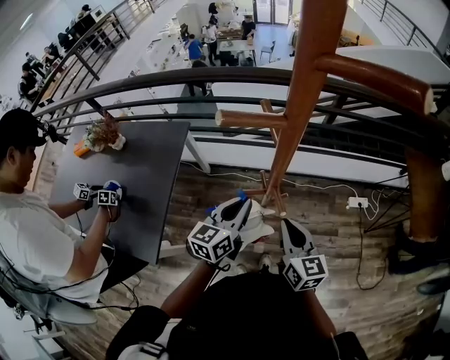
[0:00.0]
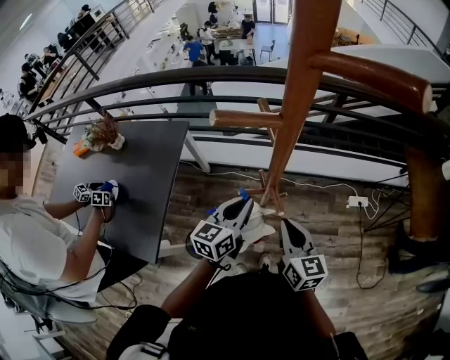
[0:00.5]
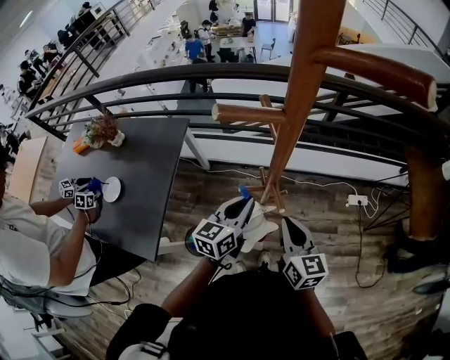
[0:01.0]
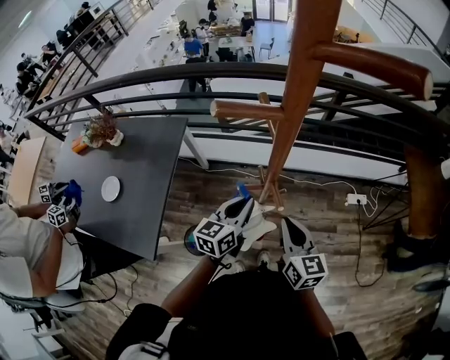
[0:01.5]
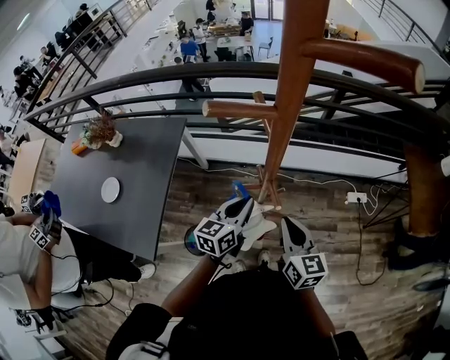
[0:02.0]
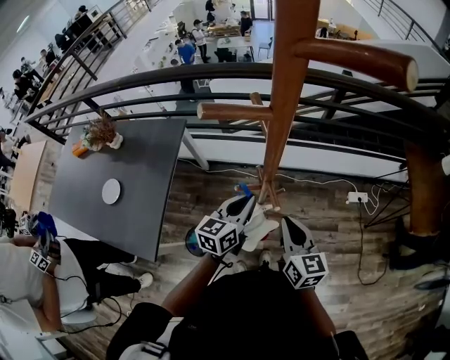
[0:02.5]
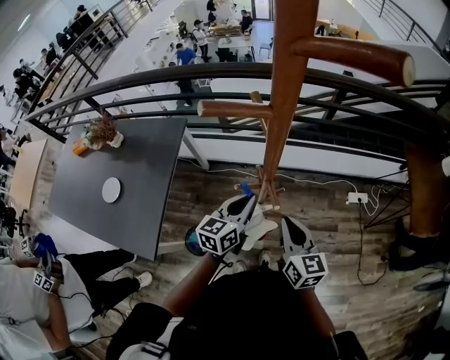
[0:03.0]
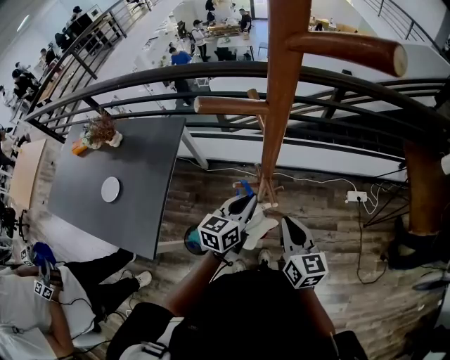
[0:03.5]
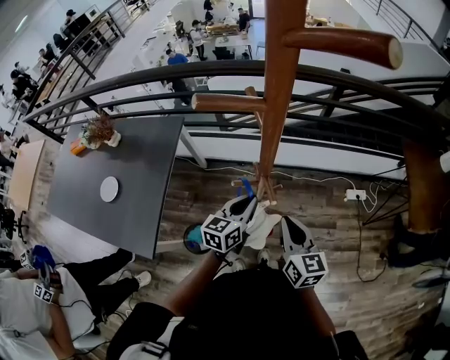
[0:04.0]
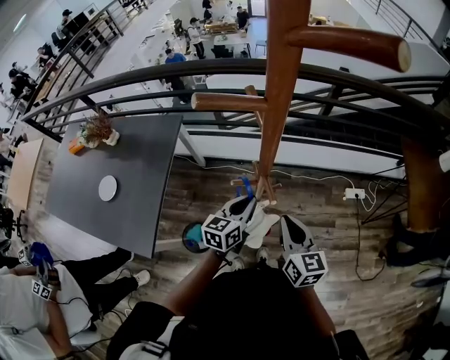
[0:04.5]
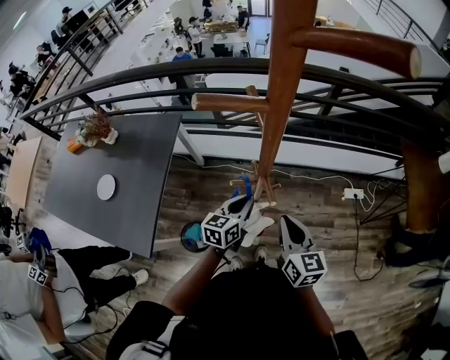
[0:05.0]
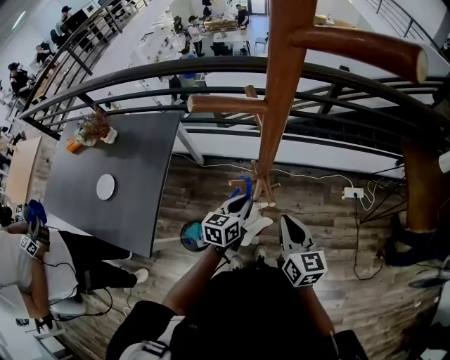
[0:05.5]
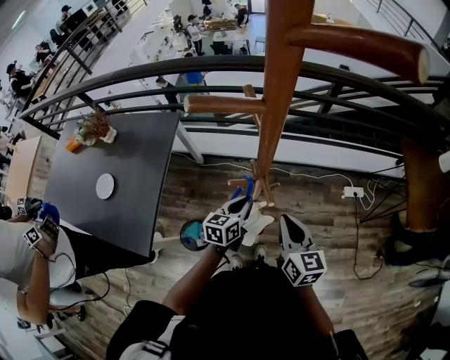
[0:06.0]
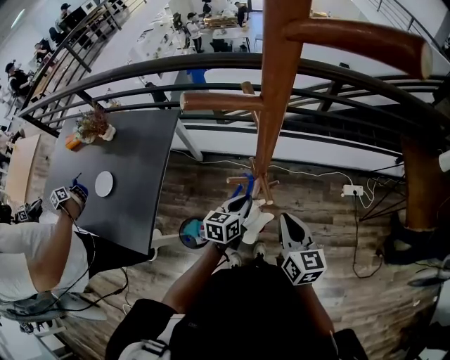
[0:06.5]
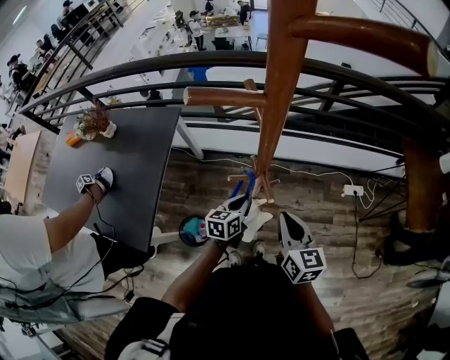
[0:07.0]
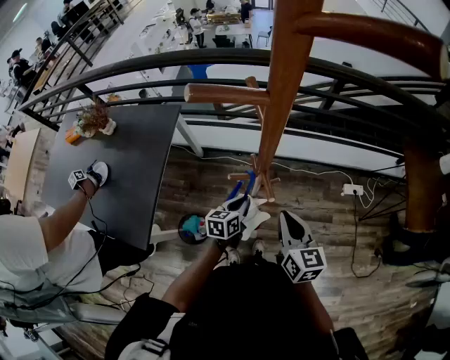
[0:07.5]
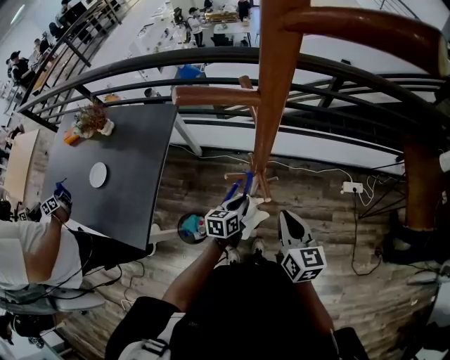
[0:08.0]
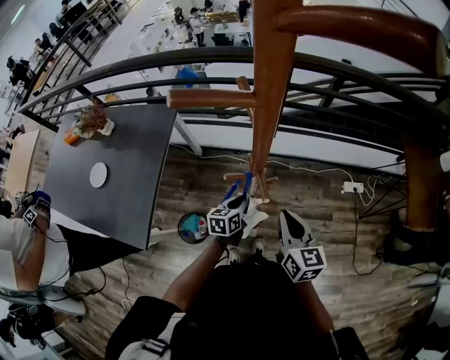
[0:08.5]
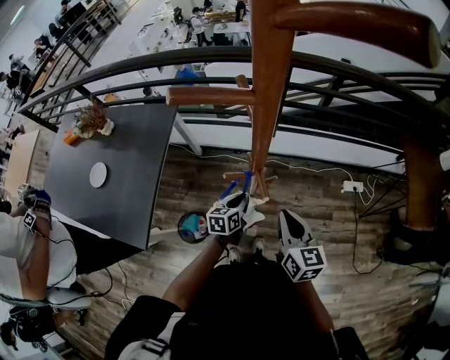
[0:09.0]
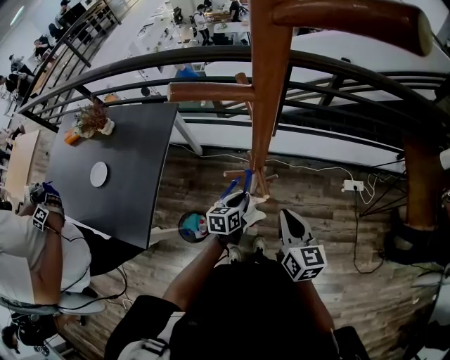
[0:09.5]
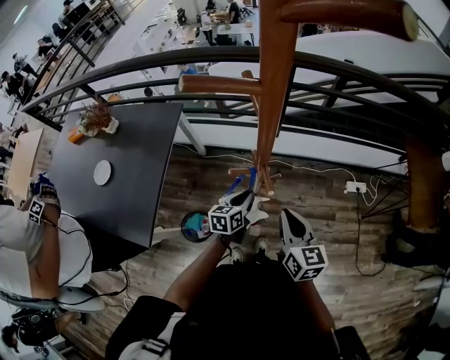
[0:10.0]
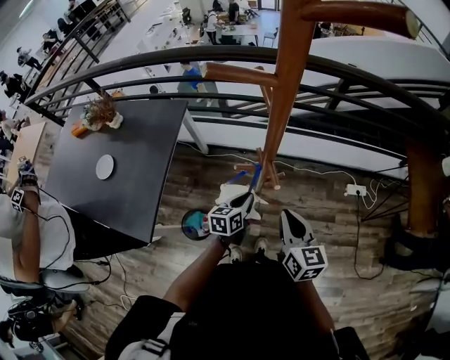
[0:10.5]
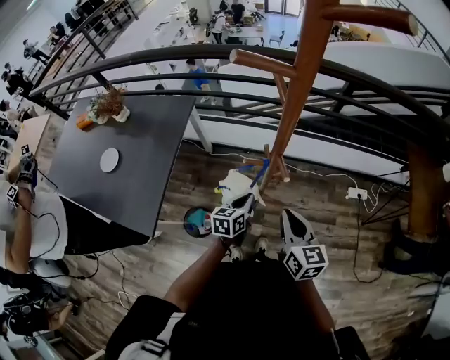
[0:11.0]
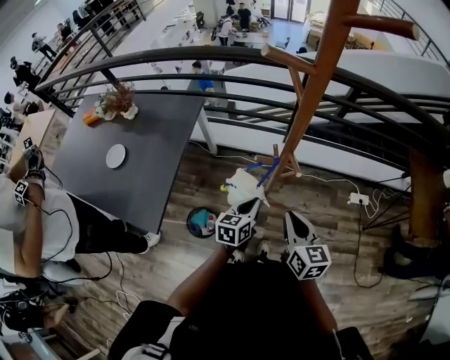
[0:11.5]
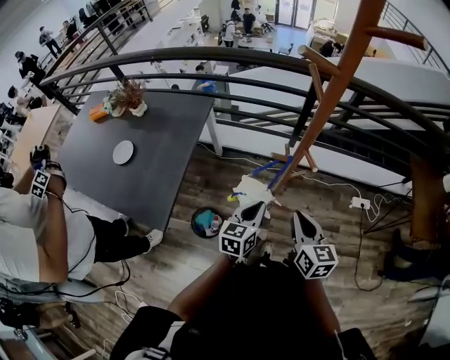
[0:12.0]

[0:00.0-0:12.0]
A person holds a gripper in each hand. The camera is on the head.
0:00.0 to 0:02.0: There are only small adjustments of the grippers.
0:02.0 to 0:04.0: The grippers stay close to where they were, moving slightly.
0:04.0 to 0:06.0: The left gripper goes approximately 5 cm downward.
0:06.0 to 0:08.0: The left gripper moves downward, some 5 cm.
0:08.0 to 0:10.0: The grippers make only small movements.
0:10.0 to 0:12.0: The left gripper is displaced backward and upward by roughly 15 cm. The right gripper heads backward, covering about 5 cm.

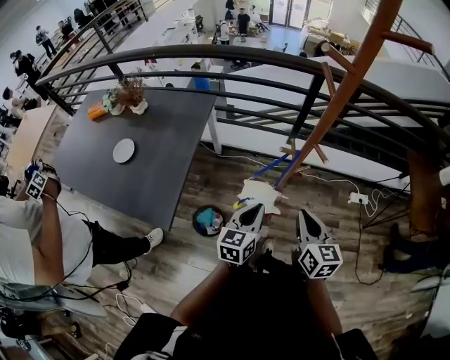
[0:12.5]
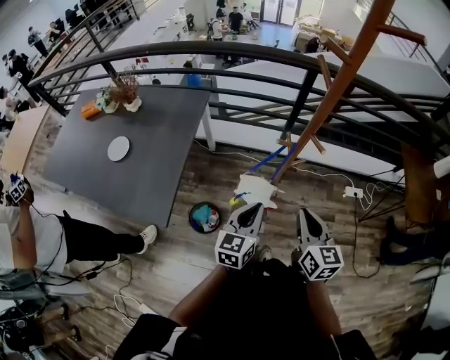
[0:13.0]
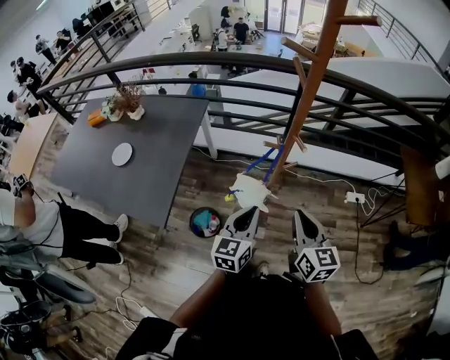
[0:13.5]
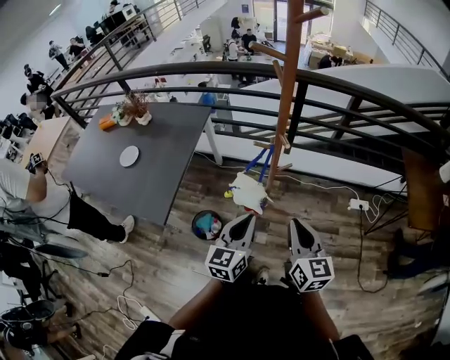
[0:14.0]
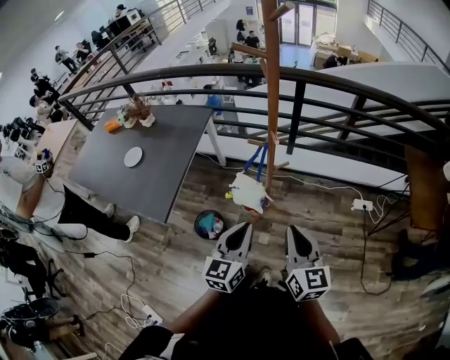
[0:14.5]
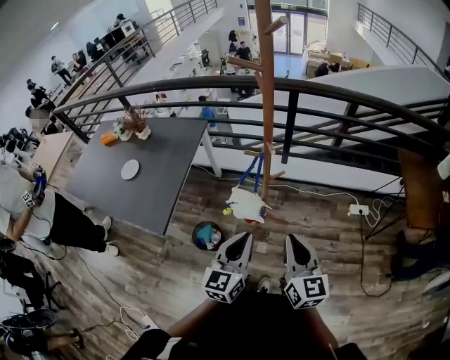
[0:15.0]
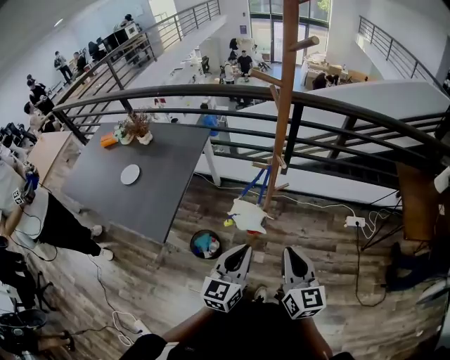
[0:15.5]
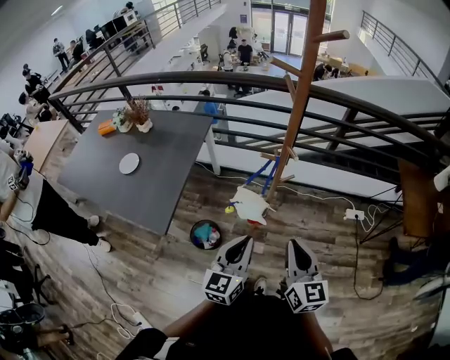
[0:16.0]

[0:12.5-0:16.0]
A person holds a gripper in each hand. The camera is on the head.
0:12.5 to 0:14.5: The left gripper moves backward, upward and to the right, roughly 15 cm, while the right gripper goes approximately 15 cm backward, to the right and upward.
0:14.5 to 0:16.0: The left gripper is displaced to the left by approximately 5 cm. Meanwhile the right gripper changes place by about 5 cm.

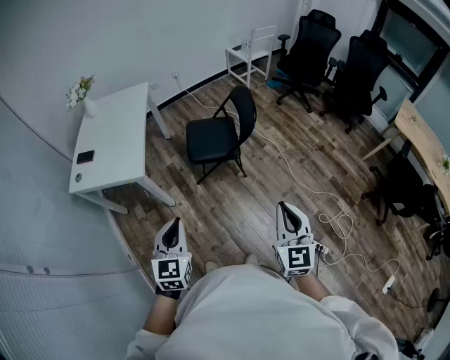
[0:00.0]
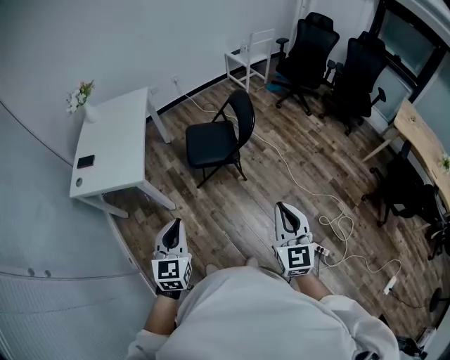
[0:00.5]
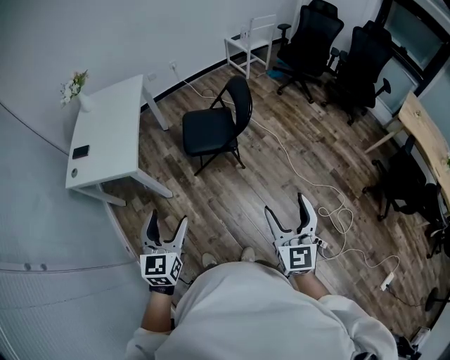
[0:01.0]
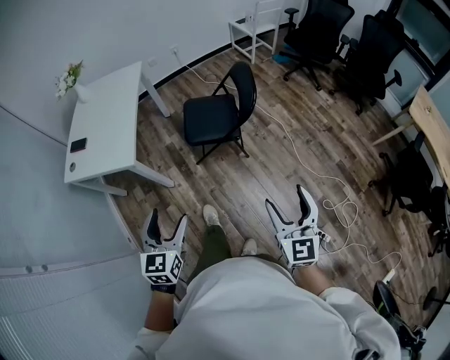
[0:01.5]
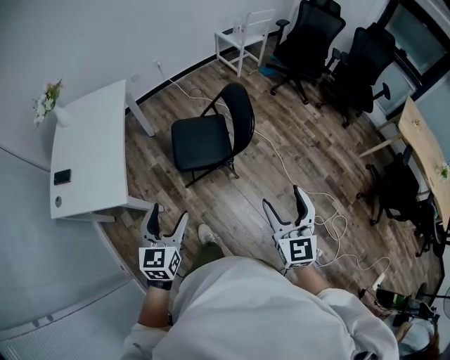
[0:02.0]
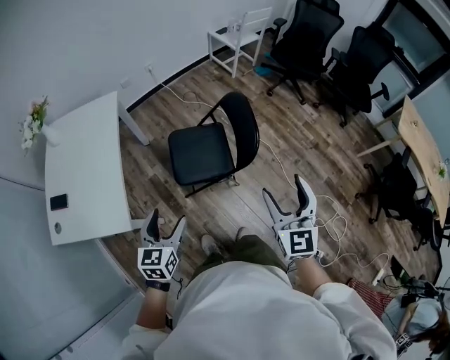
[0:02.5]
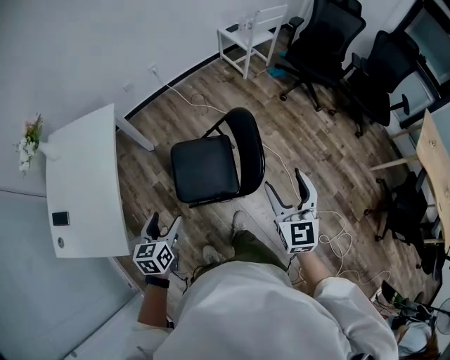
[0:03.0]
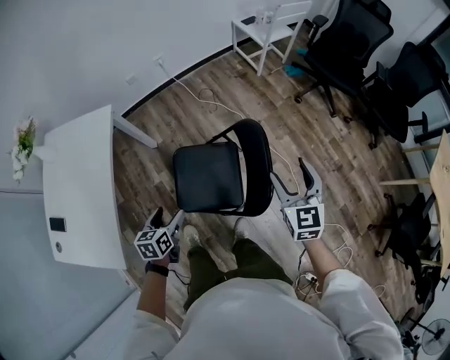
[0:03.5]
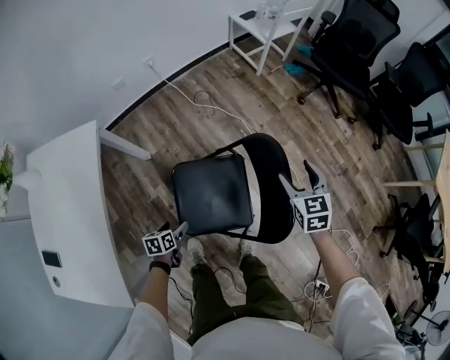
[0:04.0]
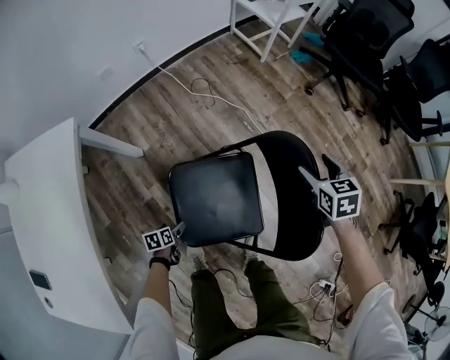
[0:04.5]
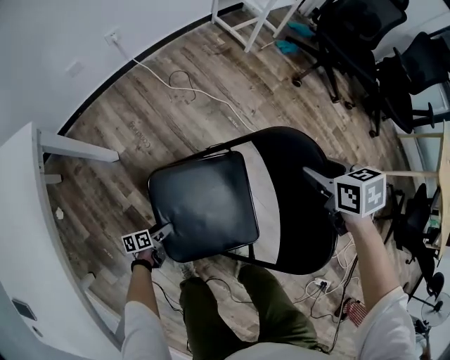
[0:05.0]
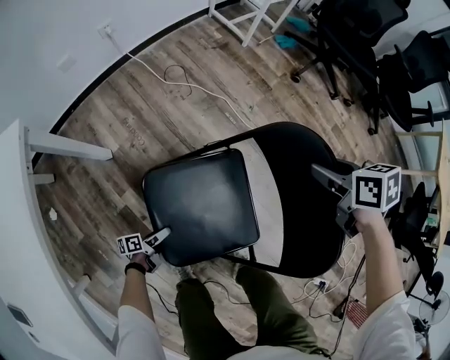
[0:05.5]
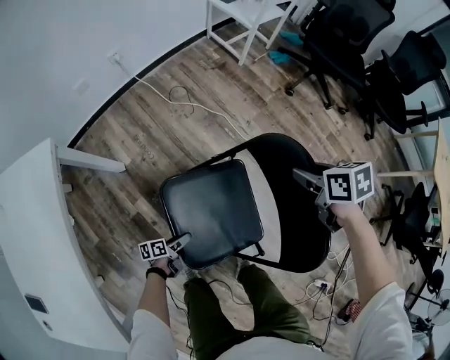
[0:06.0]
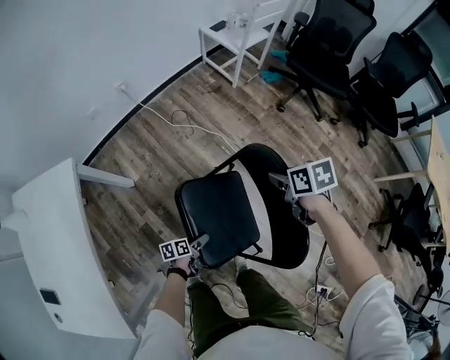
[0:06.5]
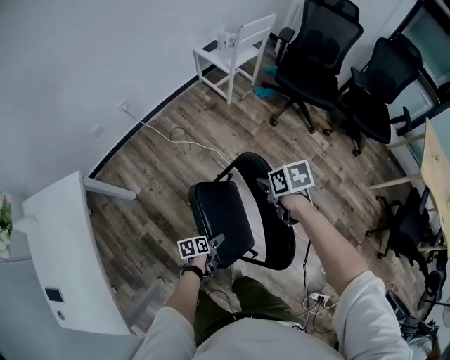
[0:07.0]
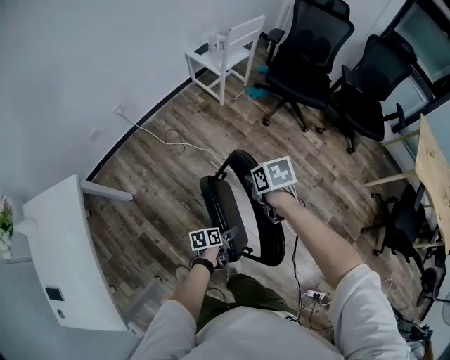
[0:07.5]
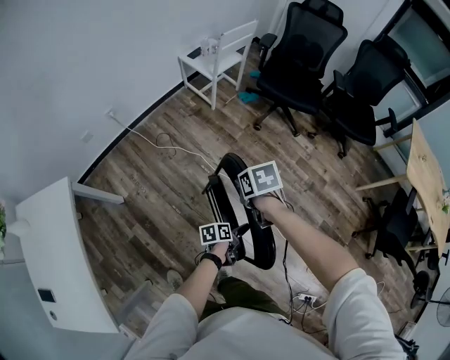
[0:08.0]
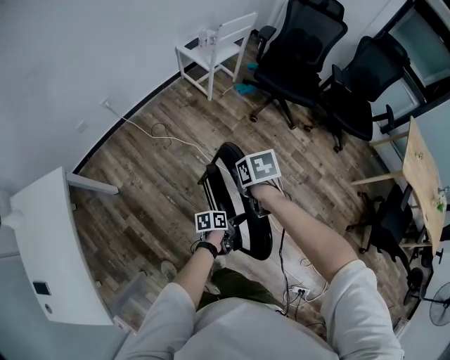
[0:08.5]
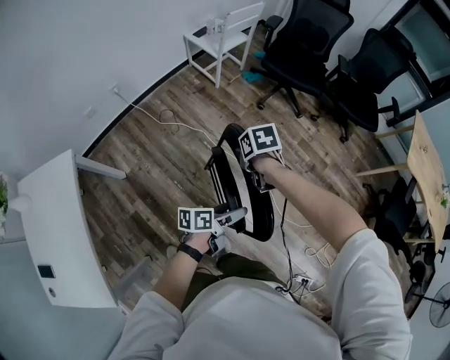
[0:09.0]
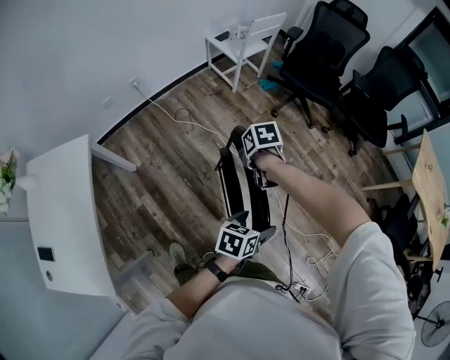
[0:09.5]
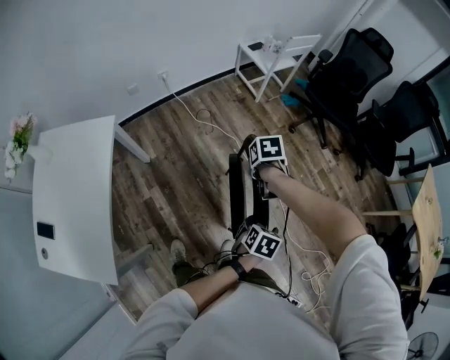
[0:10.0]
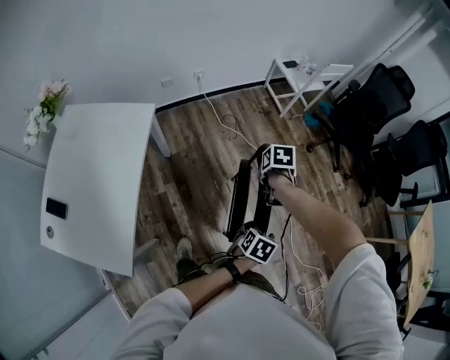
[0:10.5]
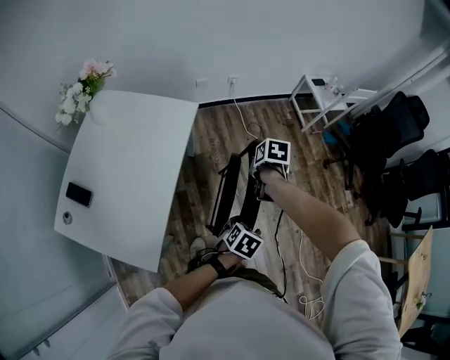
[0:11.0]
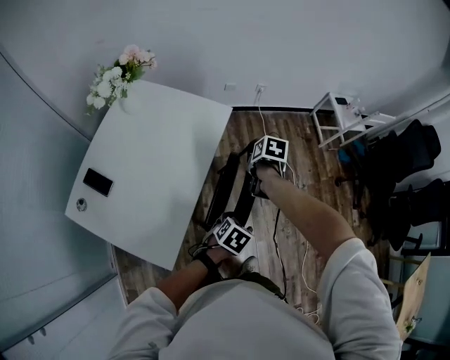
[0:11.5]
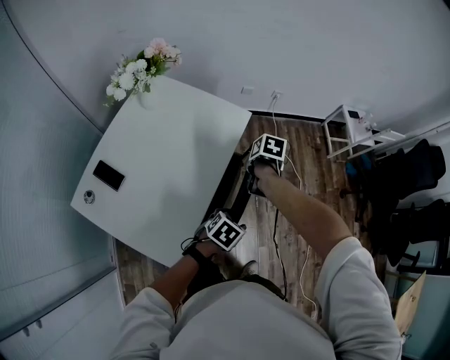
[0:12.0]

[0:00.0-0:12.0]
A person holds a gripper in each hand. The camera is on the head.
0:00.0 to 0:02.0: Both grippers move forward, approximately 25 cm. The left gripper opens its fingers. Meanwhile the right gripper opens up.
0:02.0 to 0:04.0: The two grippers travel together, forward, about 50 cm. The left gripper heads downward, covering approximately 40 cm, and points its fingers some 40 degrees further downward; the right gripper is displaced downward by approximately 25 cm, and swivels some 30 degrees.
0:04.0 to 0:06.0: The left gripper travels downward by about 20 cm, and changes its angle by about 30 degrees. Meanwhile the right gripper shifts some 10 cm downward and forward, turns by approximately 40 degrees, and closes its fingers.
0:06.0 to 0:08.0: The right gripper travels upward and to the right by about 15 cm; the left gripper heads to the right and upward, covering roughly 50 cm.
0:08.0 to 0:10.0: The left gripper shifts approximately 20 cm upward and backward, and changes its angle by some 40 degrees. The right gripper shifts about 15 cm to the left.
0:10.0 to 0:12.0: Both grippers are carried to the left, some 60 cm.
